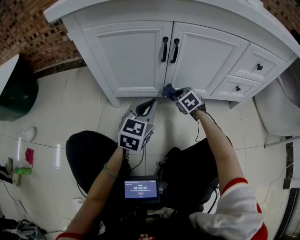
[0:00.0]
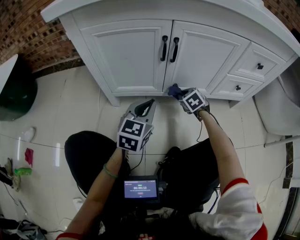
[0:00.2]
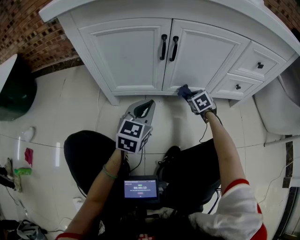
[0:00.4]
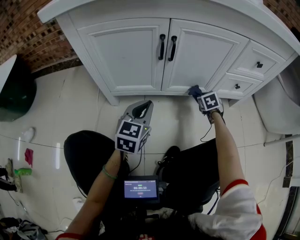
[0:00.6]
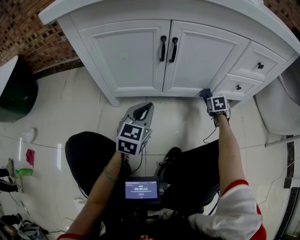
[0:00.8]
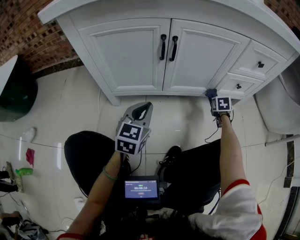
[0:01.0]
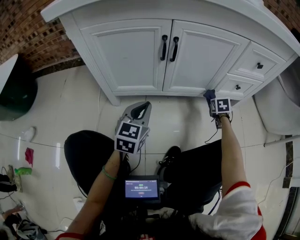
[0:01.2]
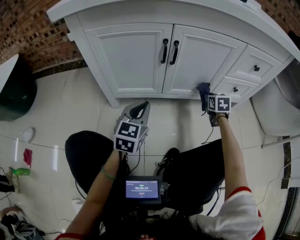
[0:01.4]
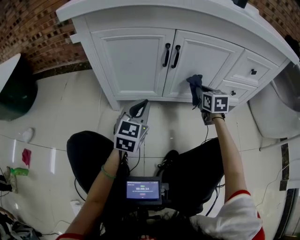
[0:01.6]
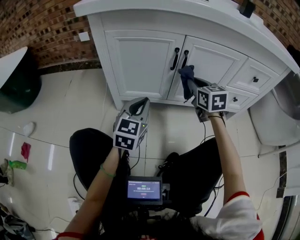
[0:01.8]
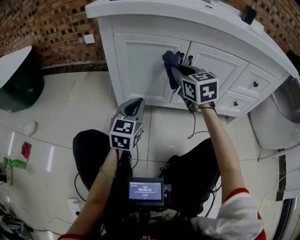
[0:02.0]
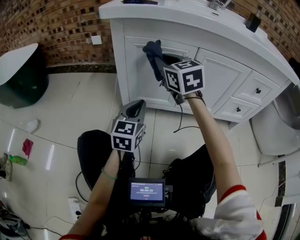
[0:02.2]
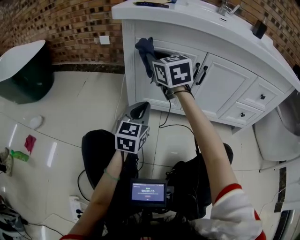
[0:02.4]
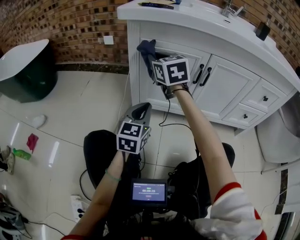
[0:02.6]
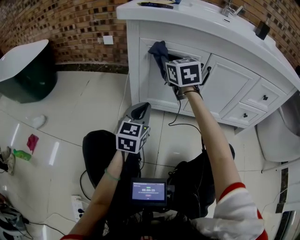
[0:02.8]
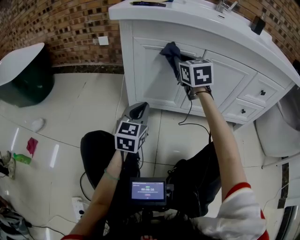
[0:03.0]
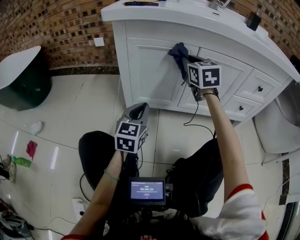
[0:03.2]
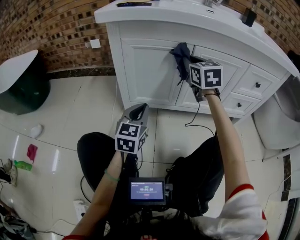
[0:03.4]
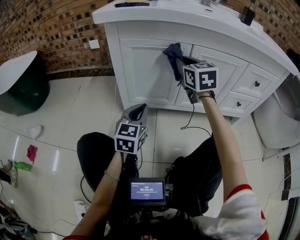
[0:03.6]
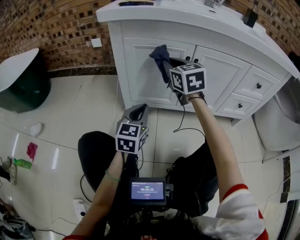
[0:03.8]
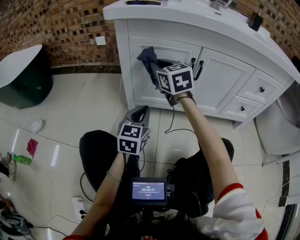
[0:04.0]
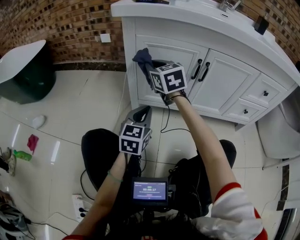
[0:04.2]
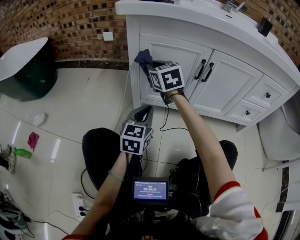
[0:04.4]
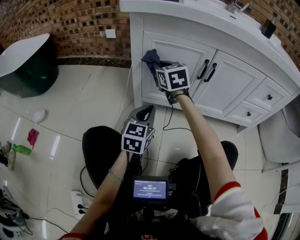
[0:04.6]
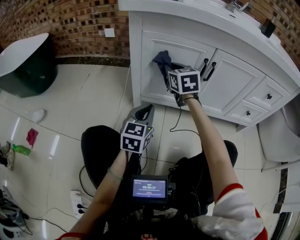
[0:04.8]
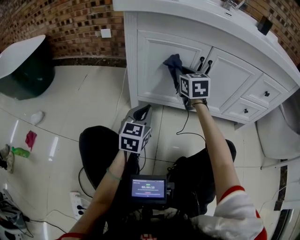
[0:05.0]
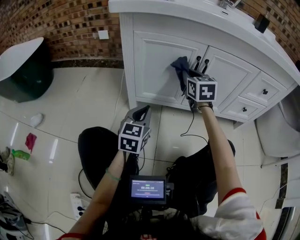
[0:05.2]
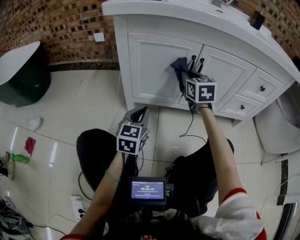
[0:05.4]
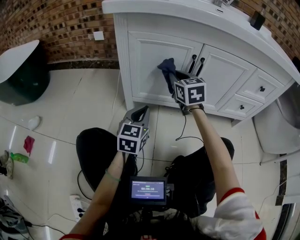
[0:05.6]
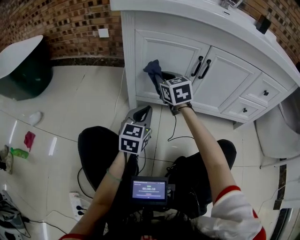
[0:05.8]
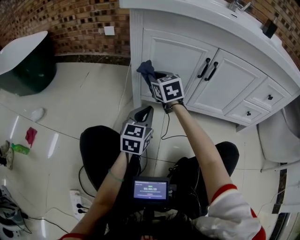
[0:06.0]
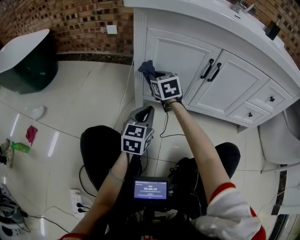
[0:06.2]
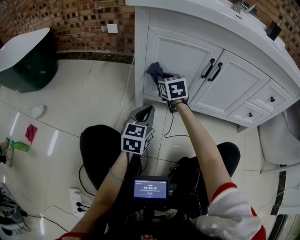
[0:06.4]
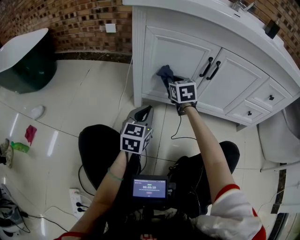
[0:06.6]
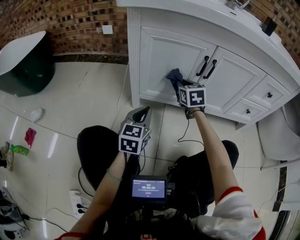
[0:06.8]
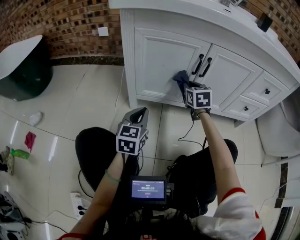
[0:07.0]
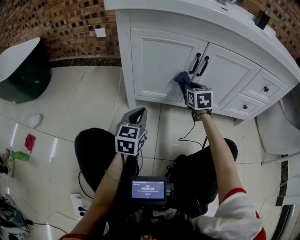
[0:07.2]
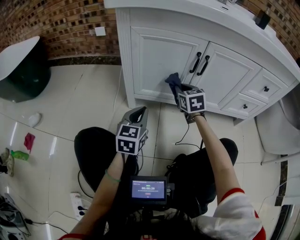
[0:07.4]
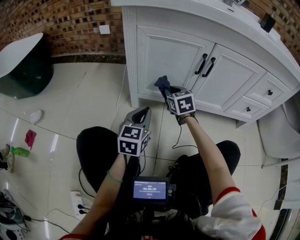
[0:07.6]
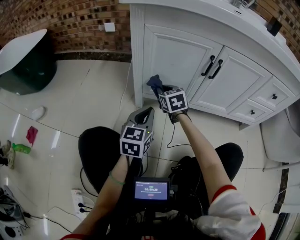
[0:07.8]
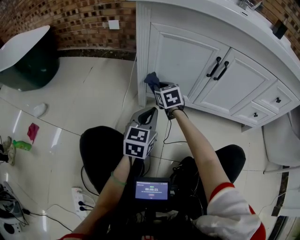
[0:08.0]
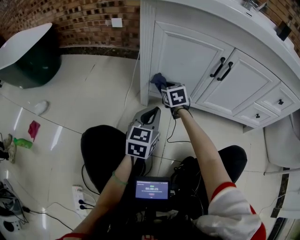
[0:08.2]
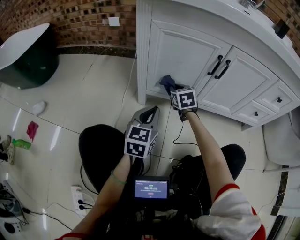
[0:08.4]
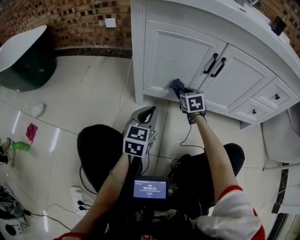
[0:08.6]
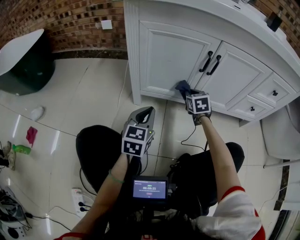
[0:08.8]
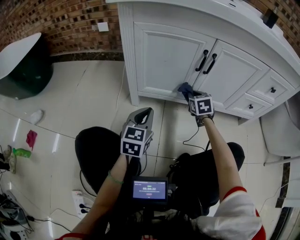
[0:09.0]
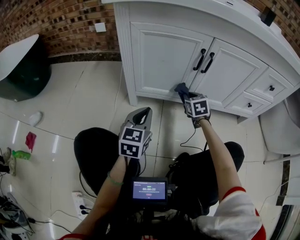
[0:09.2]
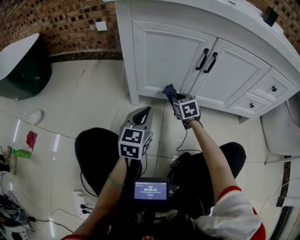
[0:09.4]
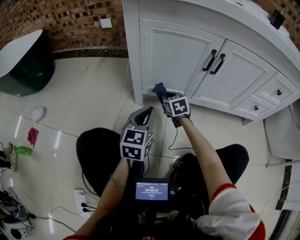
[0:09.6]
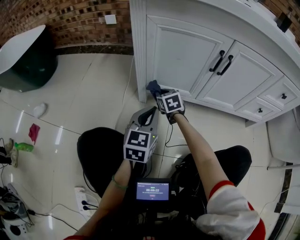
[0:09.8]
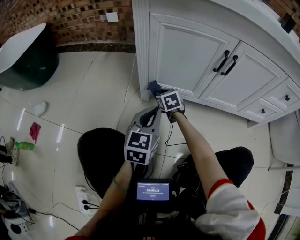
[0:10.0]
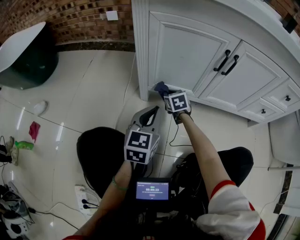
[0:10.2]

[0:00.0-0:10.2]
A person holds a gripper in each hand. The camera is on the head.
0:00.0 to 0:01.4: The right gripper is displaced to the right by about 20 cm, and turns by about 40 degrees.
0:01.4 to 0:03.0: The right gripper shifts approximately 50 cm to the left and upward, and rotates about 40 degrees; the left gripper goes some 15 cm to the left and upward.
0:03.0 to 0:04.4: The right gripper is displaced to the left and downward by some 15 cm.
0:04.4 to 0:05.8: The right gripper is displaced downward by roughly 5 cm, and reaches approximately 20 cm to the right, then returns.
0:05.8 to 0:07.2: The right gripper travels to the right and downward by approximately 15 cm.
0:07.2 to 0:08.8: The right gripper travels downward by some 10 cm, and travels to the left and back again, roughly 20 cm each way.
0:08.8 to 0:10.2: The right gripper is displaced to the left and downward by about 20 cm.

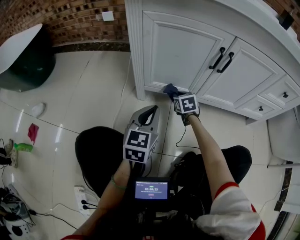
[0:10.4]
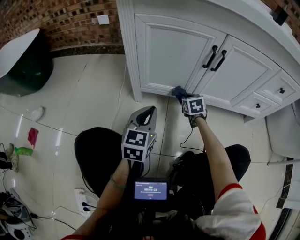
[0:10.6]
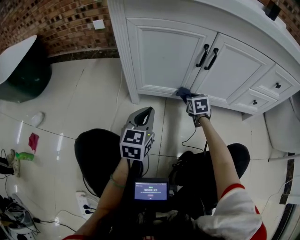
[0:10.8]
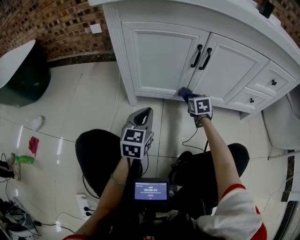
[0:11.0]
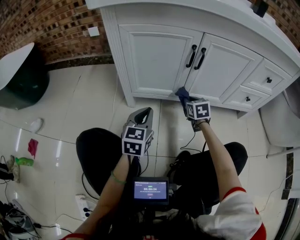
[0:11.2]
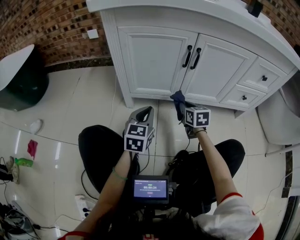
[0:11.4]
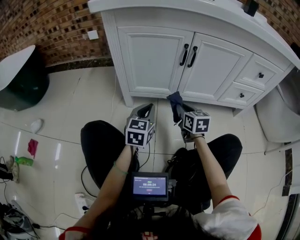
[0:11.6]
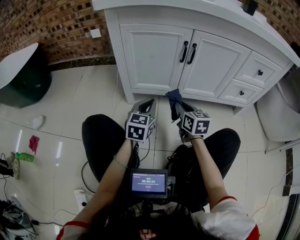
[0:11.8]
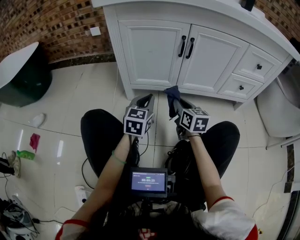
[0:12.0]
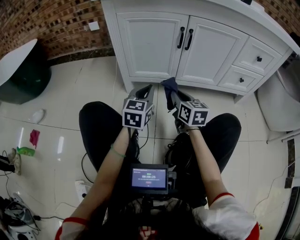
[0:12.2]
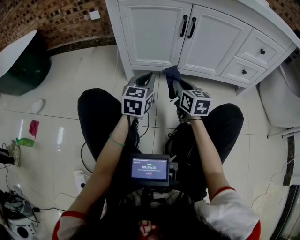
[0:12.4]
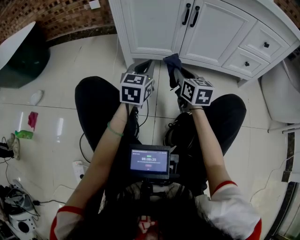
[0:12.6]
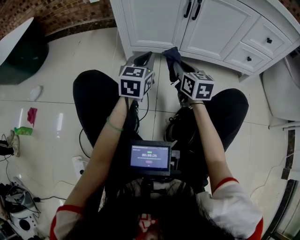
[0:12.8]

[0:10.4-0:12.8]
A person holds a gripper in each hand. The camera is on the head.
0:10.4 to 0:11.6: The left gripper shifts approximately 5 cm to the right, while the right gripper travels backward, upward and to the right by about 20 cm, and rotates approximately 30 degrees.
0:11.6 to 0:12.8: The right gripper moves backward, some 10 cm.

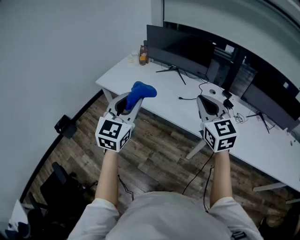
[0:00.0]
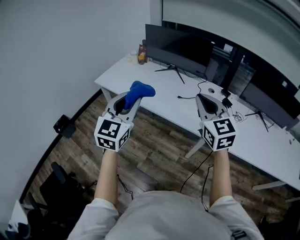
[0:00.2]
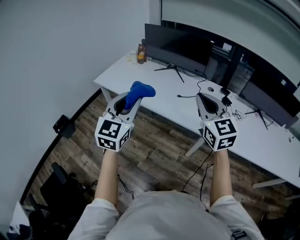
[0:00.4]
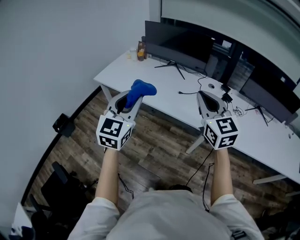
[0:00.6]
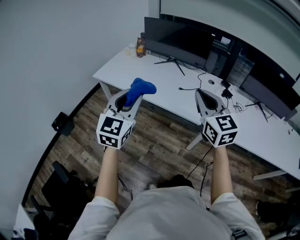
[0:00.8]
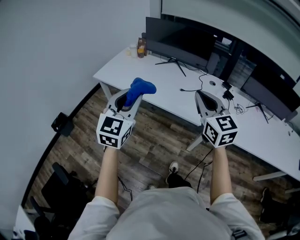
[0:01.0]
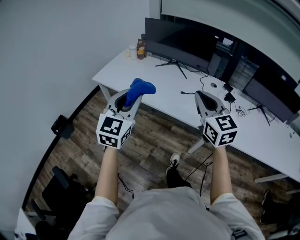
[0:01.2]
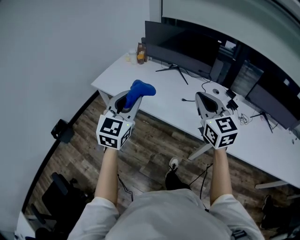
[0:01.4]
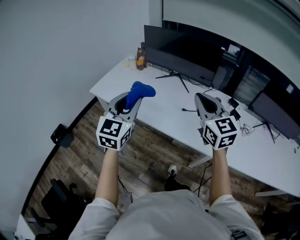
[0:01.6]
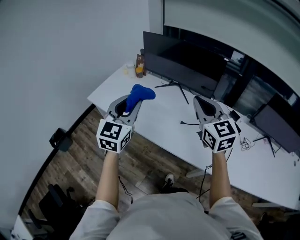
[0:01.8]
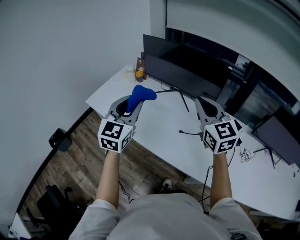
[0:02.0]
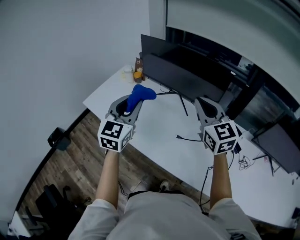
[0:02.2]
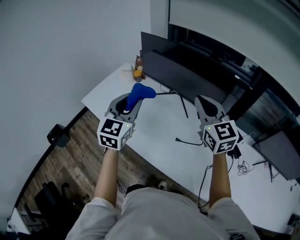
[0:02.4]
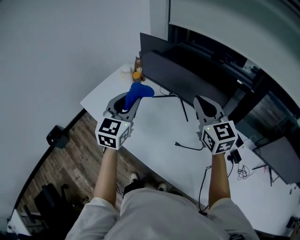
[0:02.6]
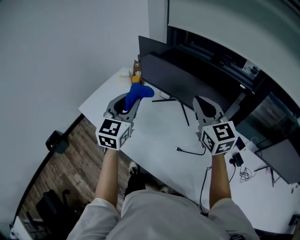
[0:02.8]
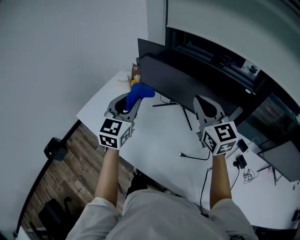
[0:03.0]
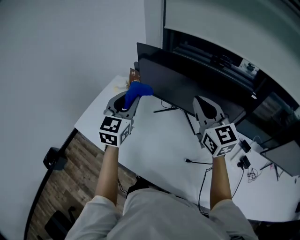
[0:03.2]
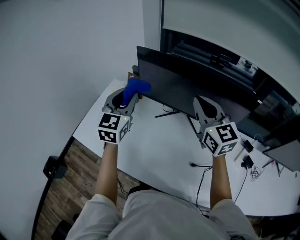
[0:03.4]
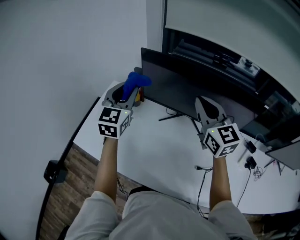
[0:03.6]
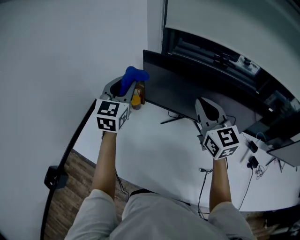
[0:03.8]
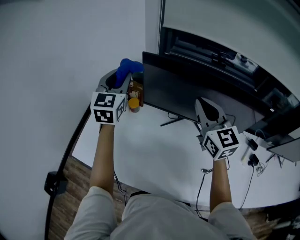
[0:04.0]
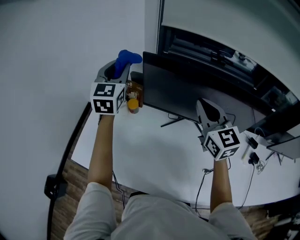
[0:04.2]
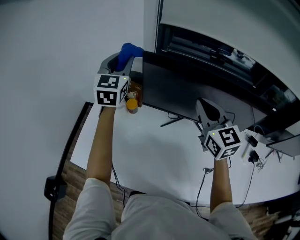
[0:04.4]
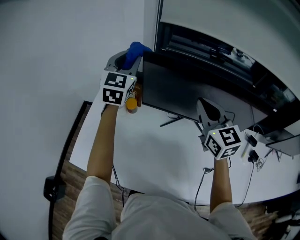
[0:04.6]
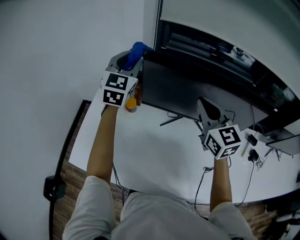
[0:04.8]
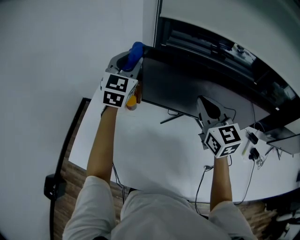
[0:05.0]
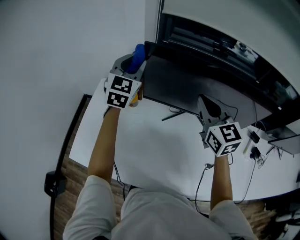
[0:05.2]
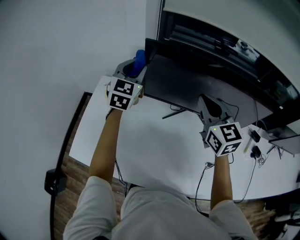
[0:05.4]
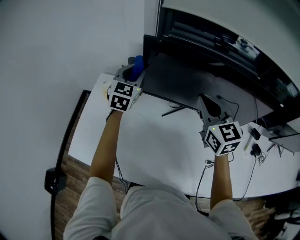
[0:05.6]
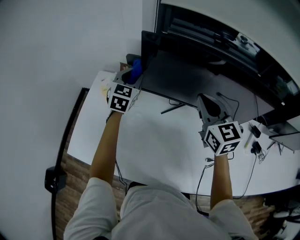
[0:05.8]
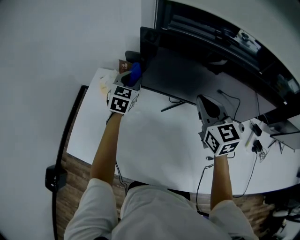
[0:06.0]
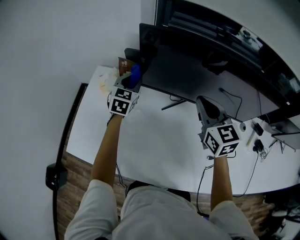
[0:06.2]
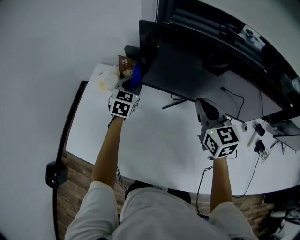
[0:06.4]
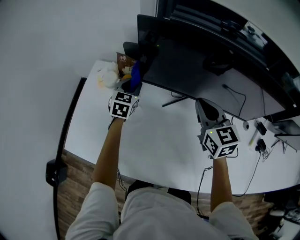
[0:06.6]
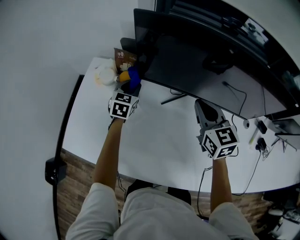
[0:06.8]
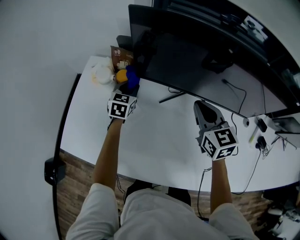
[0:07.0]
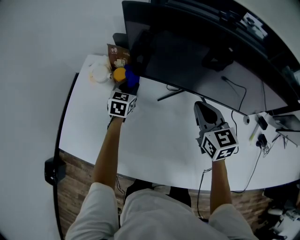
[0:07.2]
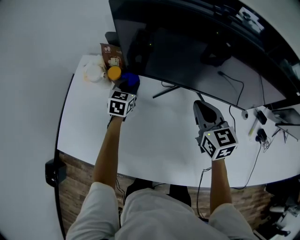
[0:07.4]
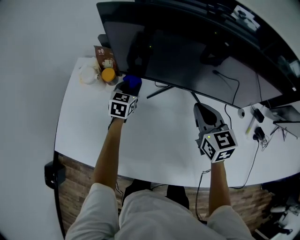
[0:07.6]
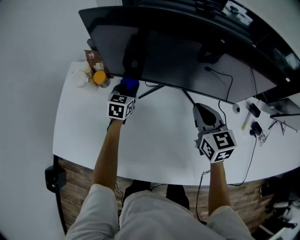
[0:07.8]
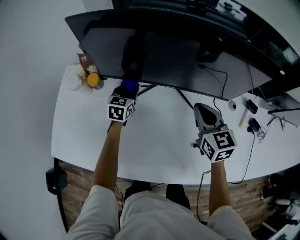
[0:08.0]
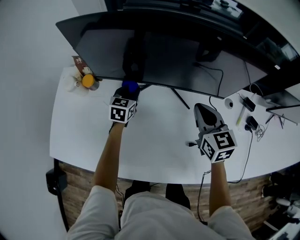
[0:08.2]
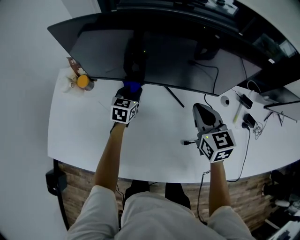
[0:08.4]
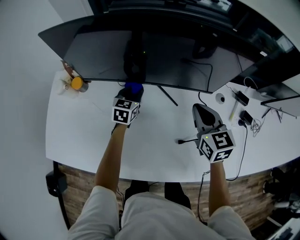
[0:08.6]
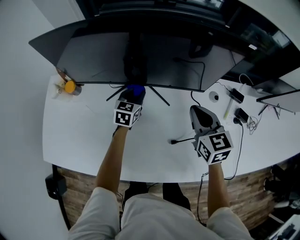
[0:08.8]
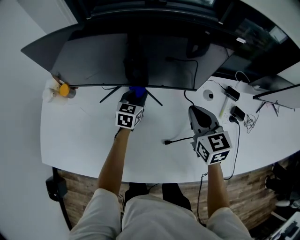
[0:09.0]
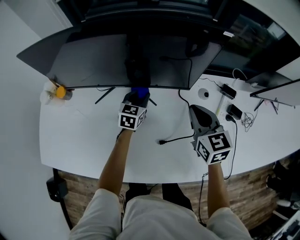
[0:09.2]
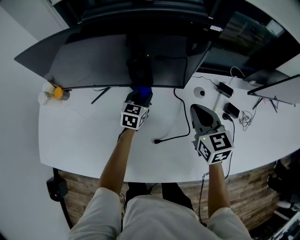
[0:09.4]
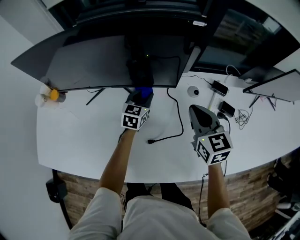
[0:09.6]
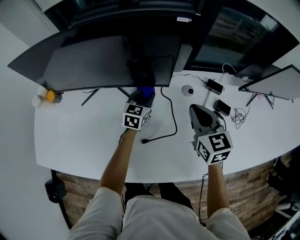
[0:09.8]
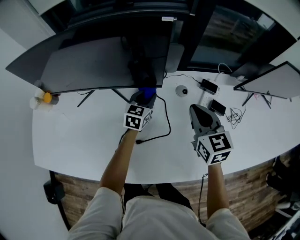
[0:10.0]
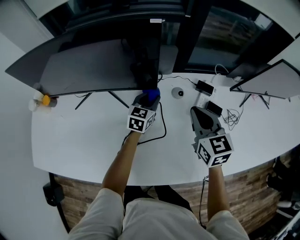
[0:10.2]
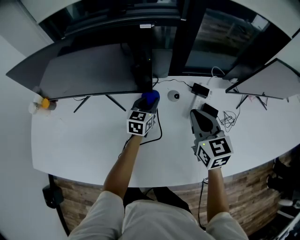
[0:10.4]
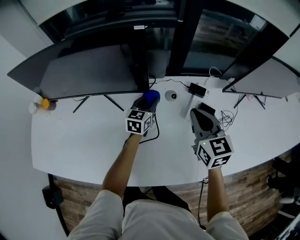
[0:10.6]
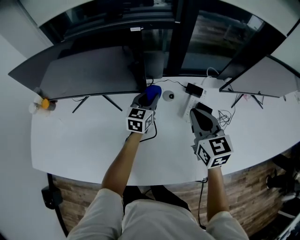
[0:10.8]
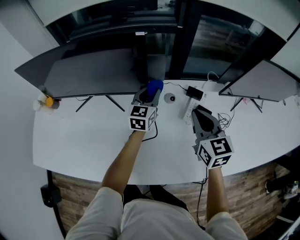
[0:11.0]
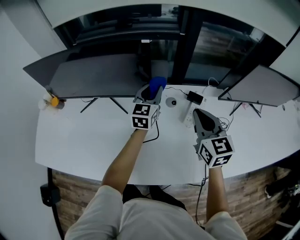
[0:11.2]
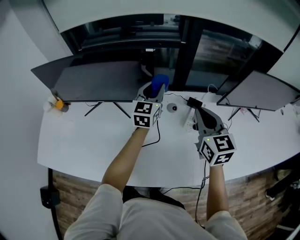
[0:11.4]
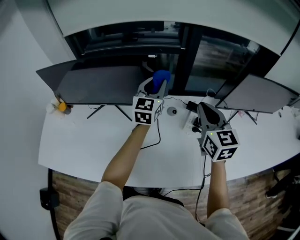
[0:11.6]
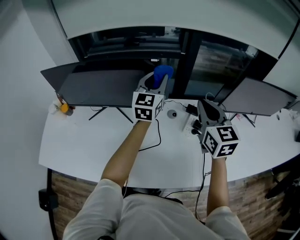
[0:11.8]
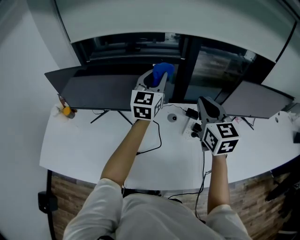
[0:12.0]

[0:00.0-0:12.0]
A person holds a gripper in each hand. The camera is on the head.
0:00.0 to 0:01.6: Both grippers move forward, roughly 15 cm.
0:01.6 to 0:03.0: The grippers both shift forward by roughly 35 cm.
0:03.0 to 0:04.4: The left gripper heads forward, covering about 35 cm. Meanwhile the right gripper heads forward and to the left, covering approximately 20 cm.
0:04.4 to 0:06.0: The right gripper goes approximately 10 cm downward, while the left gripper moves downward, roughly 25 cm, and rotates about 20 degrees.
0:06.0 to 0:07.6: The grippers both shift downward and to the right by roughly 15 cm.
0:07.6 to 0:09.0: Both grippers travel together to the right, roughly 25 cm.
0:09.0 to 0:10.4: Both grippers move to the right, about 25 cm.
0:10.4 to 0:12.0: The right gripper heads upward, covering roughly 20 cm, while the left gripper is displaced upward by about 35 cm, and changes its angle by some 30 degrees.
